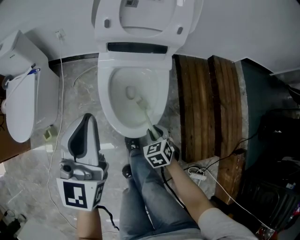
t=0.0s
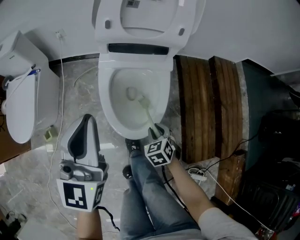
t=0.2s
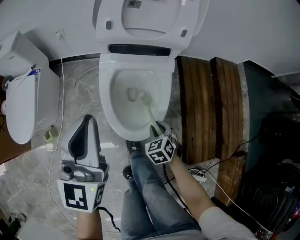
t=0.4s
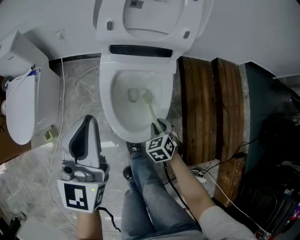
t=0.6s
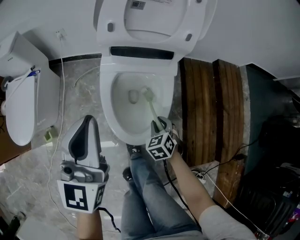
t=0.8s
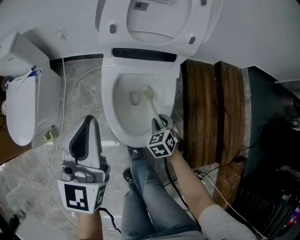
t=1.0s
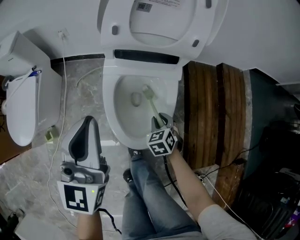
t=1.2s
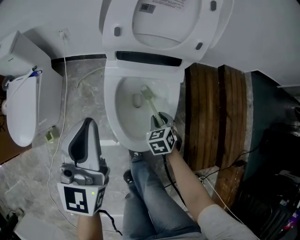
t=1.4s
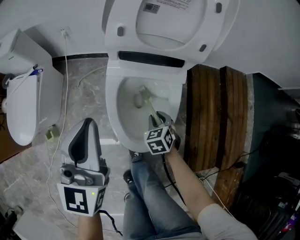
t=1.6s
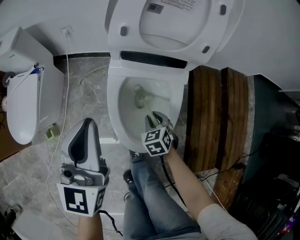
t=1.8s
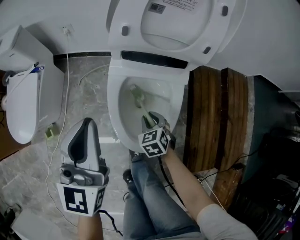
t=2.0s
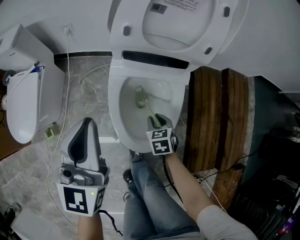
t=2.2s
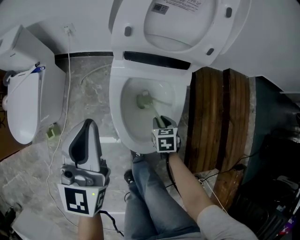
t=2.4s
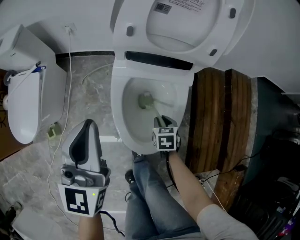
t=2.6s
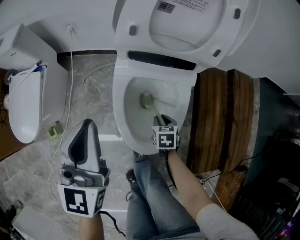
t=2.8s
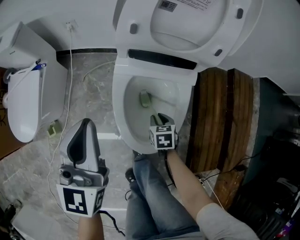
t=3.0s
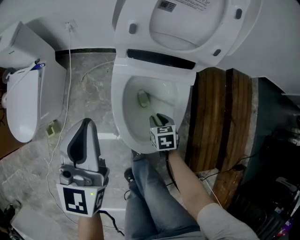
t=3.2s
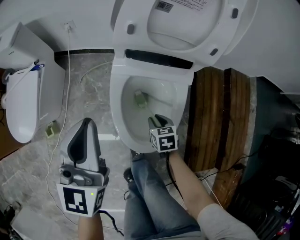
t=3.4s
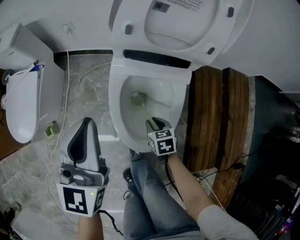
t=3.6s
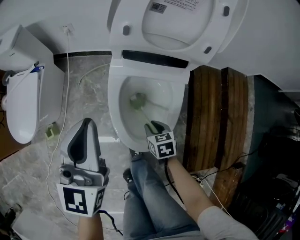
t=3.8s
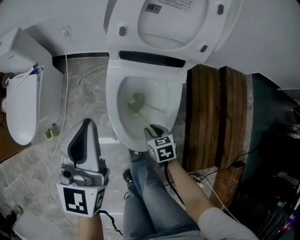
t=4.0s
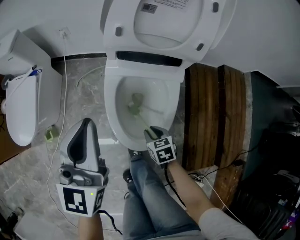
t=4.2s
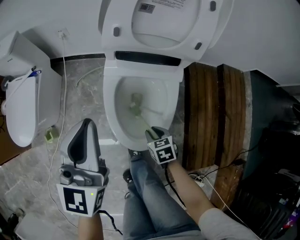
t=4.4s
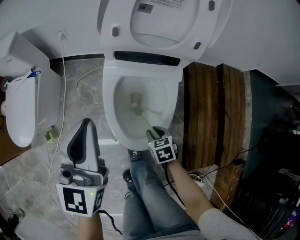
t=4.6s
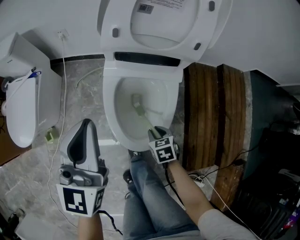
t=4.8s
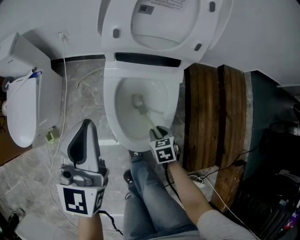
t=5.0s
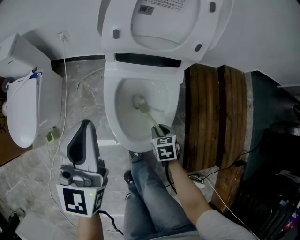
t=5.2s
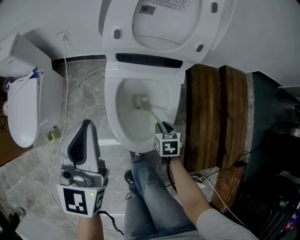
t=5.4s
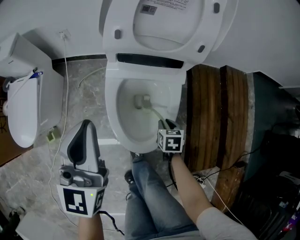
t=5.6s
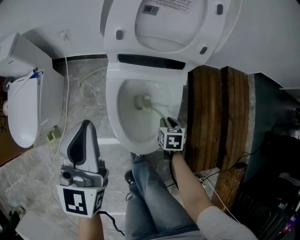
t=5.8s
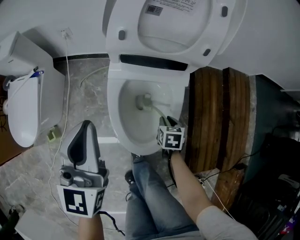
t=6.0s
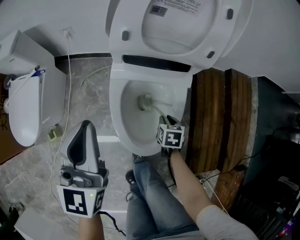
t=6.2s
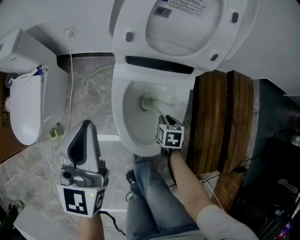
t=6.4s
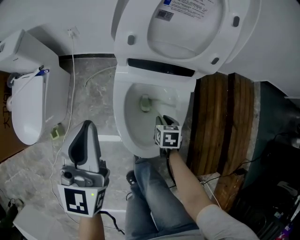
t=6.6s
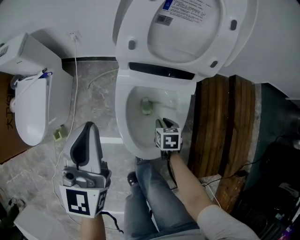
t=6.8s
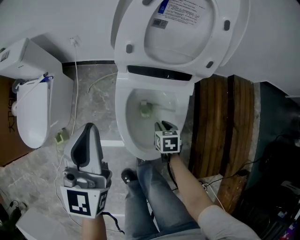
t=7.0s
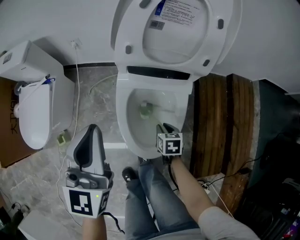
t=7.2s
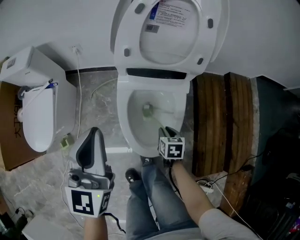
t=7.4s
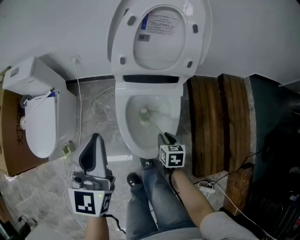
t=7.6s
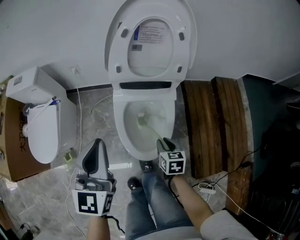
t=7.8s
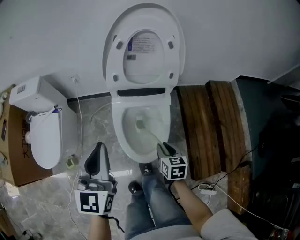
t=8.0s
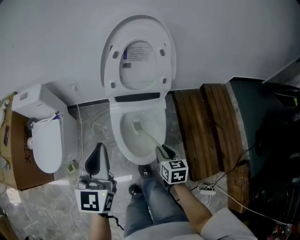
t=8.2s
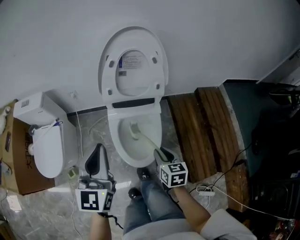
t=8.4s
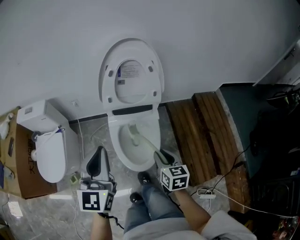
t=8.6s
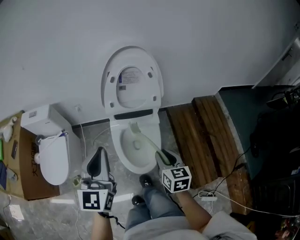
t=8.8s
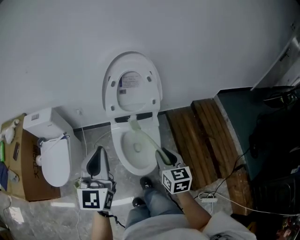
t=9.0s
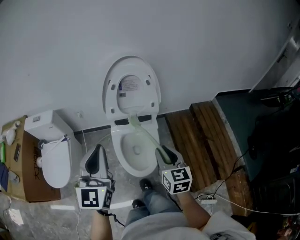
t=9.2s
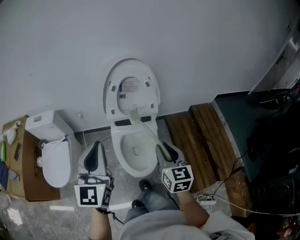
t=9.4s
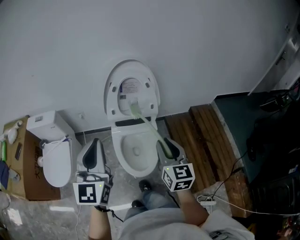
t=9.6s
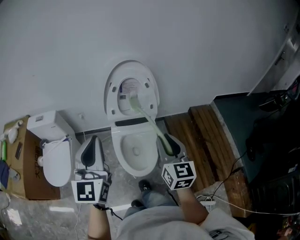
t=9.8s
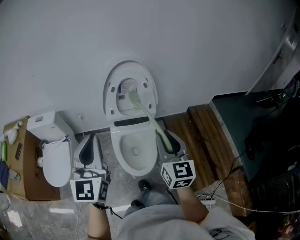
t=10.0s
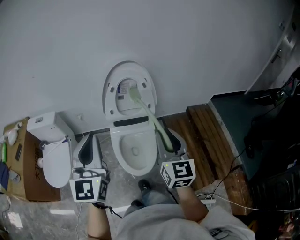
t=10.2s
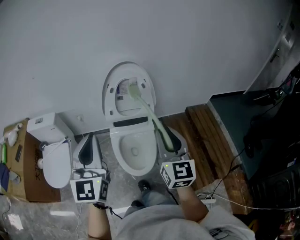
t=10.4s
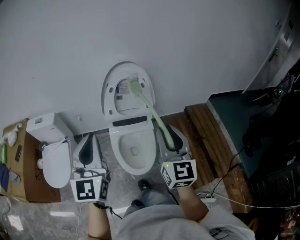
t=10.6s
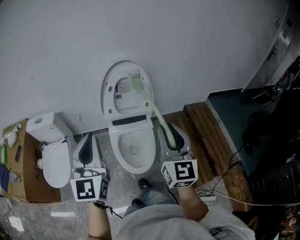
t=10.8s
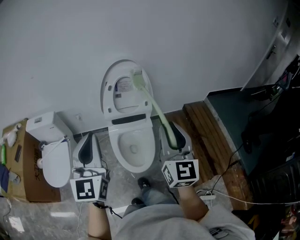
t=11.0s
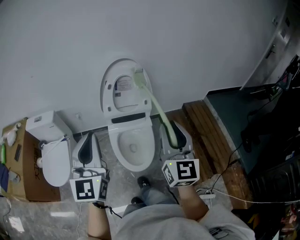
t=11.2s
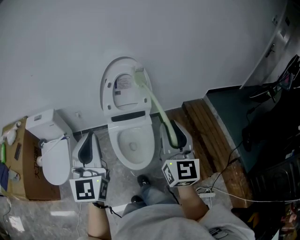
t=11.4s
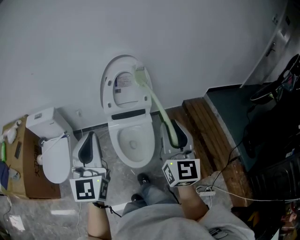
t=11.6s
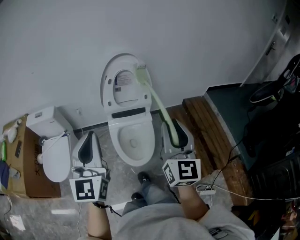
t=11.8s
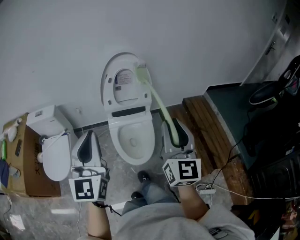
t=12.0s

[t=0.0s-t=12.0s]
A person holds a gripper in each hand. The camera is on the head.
t=0.0s to t=1.6s: The left gripper goes about 5 cm forward, while the right gripper is displaced forward by roughly 15 cm.
t=1.6s to t=3.0s: The right gripper rotates about 20 degrees.
t=3.0s to t=4.4s: The left gripper shifts by roughly 5 cm. Meanwhile the right gripper shifts approximately 10 cm backward.
t=4.4s to t=6.0s: The right gripper goes approximately 10 cm forward and to the right, and turns by roughly 20 degrees.
t=6.0s to t=7.6s: The two grippers go roughly 10 cm upward.
t=7.6s to t=9.0s: The right gripper shifts about 35 cm upward, and rotates roughly 30 degrees; the left gripper goes roughly 20 cm upward.
t=9.0s to t=10.4s: The left gripper goes roughly 10 cm upward; the right gripper is displaced upward by approximately 20 cm, and swivels some 30 degrees.
t=10.4s to t=12.0s: The two grippers go roughly 5 cm backward.

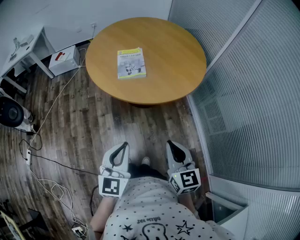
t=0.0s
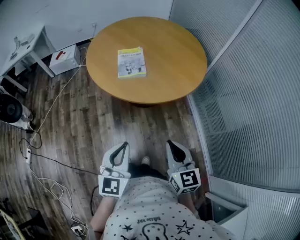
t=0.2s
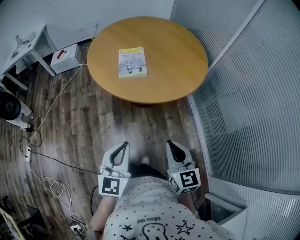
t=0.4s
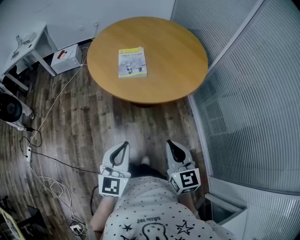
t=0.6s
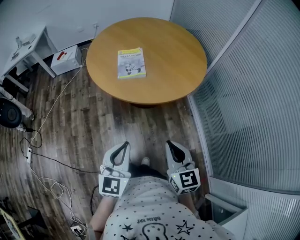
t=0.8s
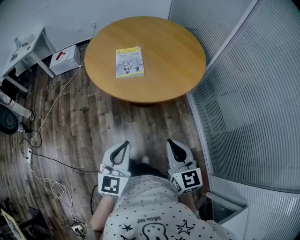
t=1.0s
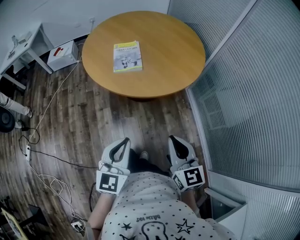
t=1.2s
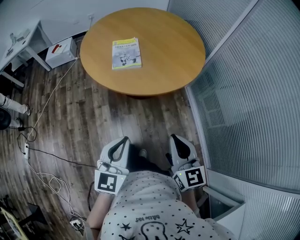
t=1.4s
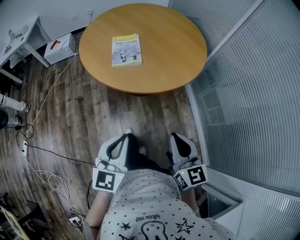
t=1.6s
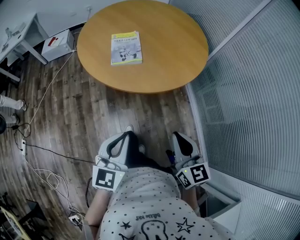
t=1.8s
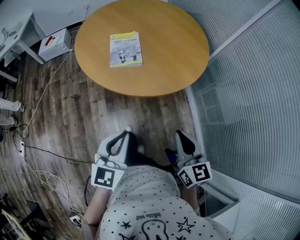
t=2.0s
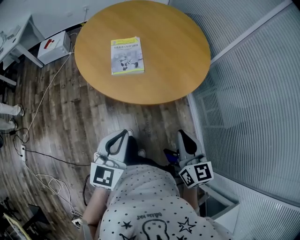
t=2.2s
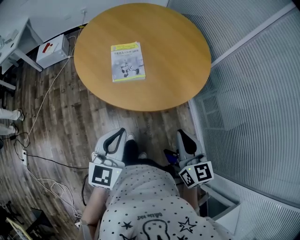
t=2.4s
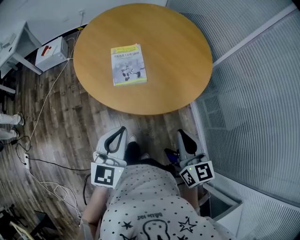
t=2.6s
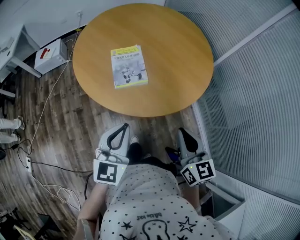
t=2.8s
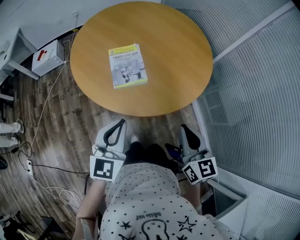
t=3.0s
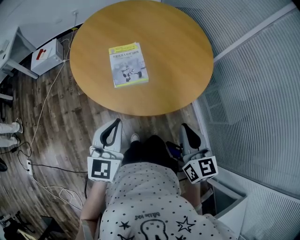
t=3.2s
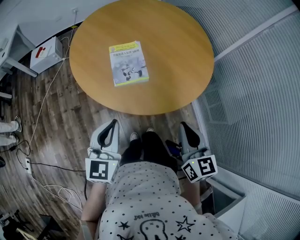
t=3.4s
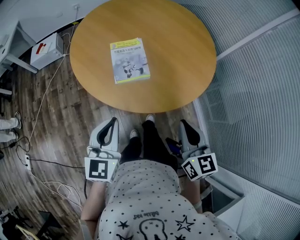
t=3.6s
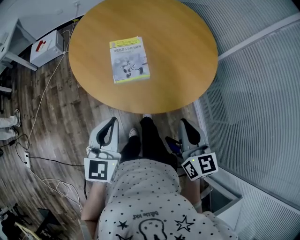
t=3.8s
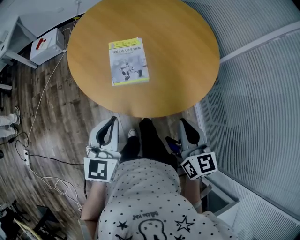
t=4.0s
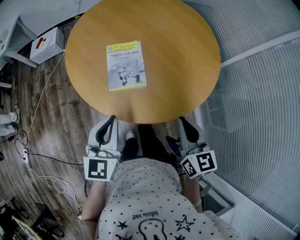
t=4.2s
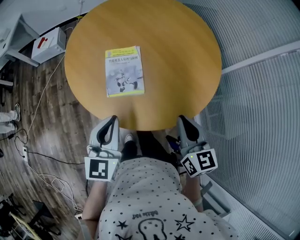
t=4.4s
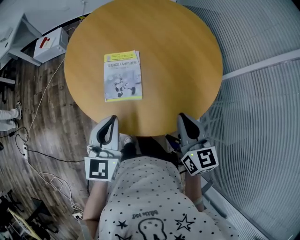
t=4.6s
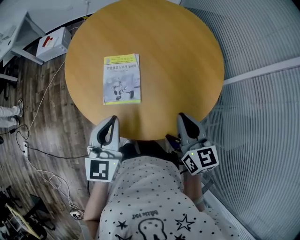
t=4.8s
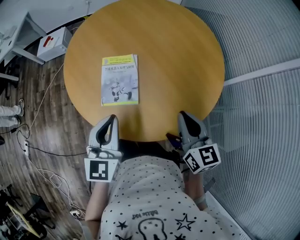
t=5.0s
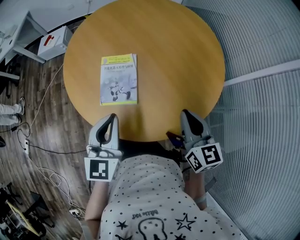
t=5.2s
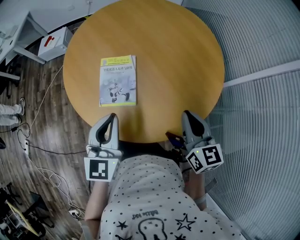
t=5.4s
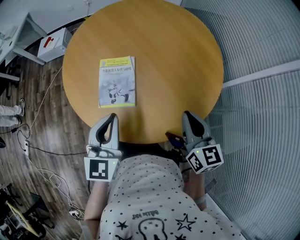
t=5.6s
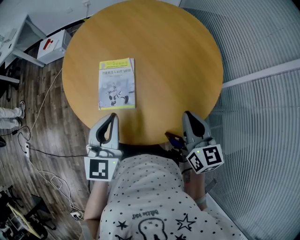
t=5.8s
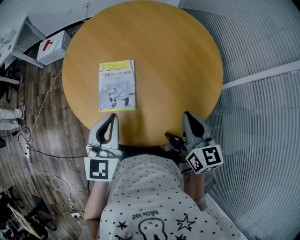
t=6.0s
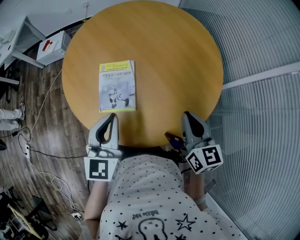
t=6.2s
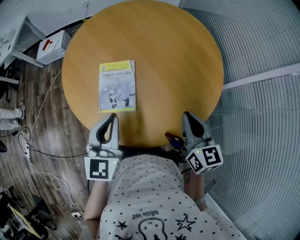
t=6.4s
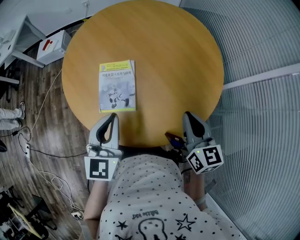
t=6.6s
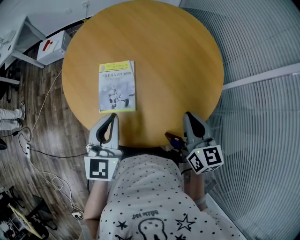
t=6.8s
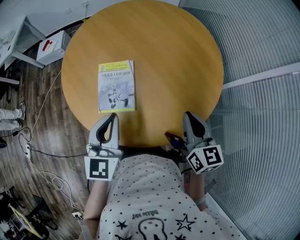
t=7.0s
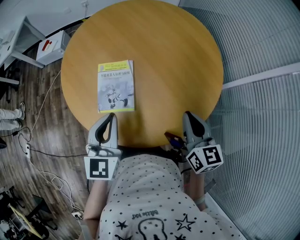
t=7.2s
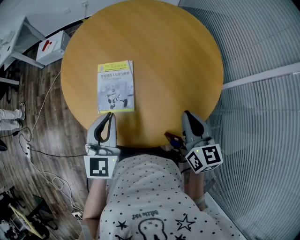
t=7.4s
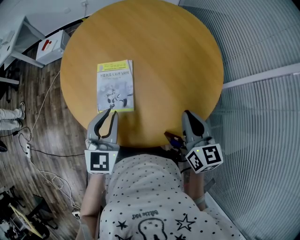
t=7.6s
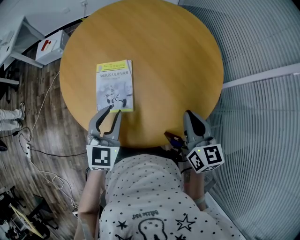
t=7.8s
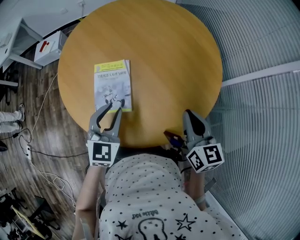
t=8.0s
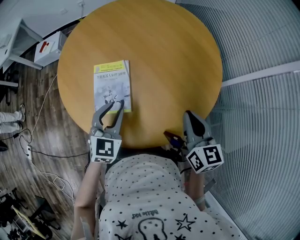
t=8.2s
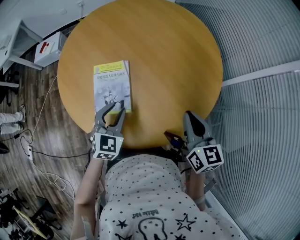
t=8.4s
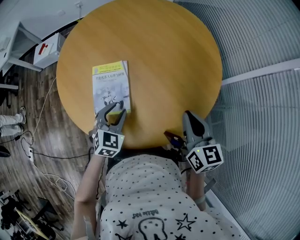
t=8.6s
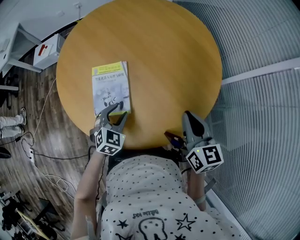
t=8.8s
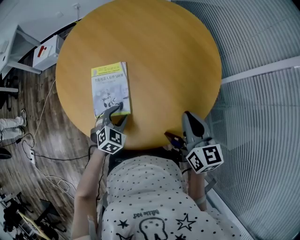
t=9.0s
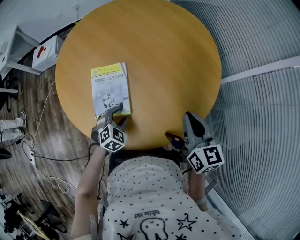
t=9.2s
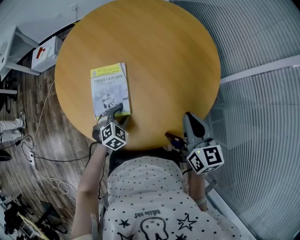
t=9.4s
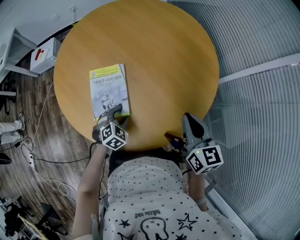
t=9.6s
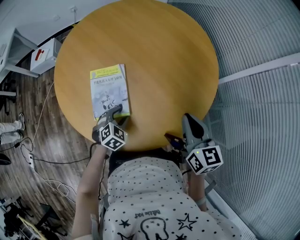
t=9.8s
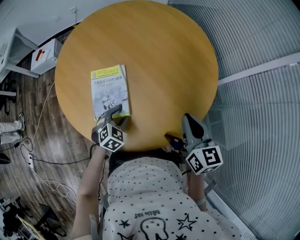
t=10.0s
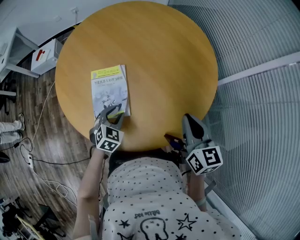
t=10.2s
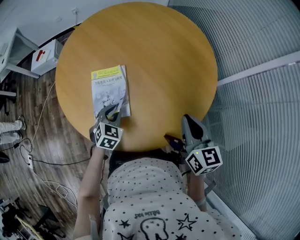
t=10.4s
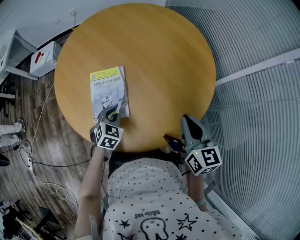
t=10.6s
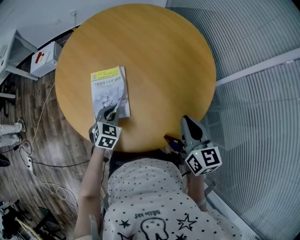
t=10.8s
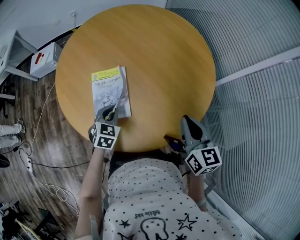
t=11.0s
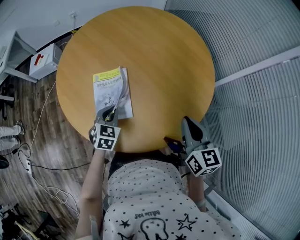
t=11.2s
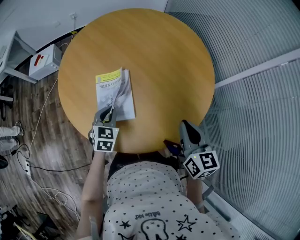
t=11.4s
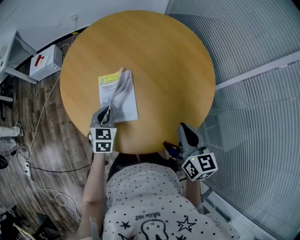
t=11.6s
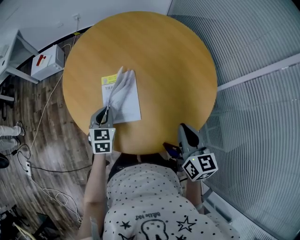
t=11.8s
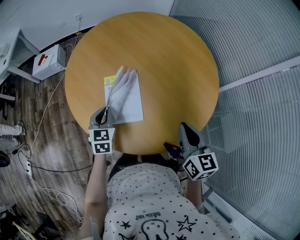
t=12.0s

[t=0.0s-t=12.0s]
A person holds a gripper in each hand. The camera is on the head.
t=0.0s to t=1.6s: There are only small adjustments of the grippers.
t=1.6s to t=3.0s: The left gripper travels forward and to the left by roughly 25 cm. Meanwhile the right gripper heads forward, covering roughly 20 cm.
t=3.0s to t=4.4s: Both grippers travel together forward, about 15 cm.
t=4.4s to t=6.0s: Both grippers move forward and to the right, about 10 cm.
t=6.0s to t=7.6s: There are only small adjustments of the grippers.
t=7.6s to t=9.0s: The left gripper is displaced downward by roughly 20 cm, tilts its fingers some 30 degrees downward, and opens up.
t=9.0s to t=10.4s: The left gripper closes its fingers.
t=10.4s to t=12.0s: The left gripper shifts about 15 cm to the left and upward, and turns by roughly 30 degrees; the right gripper heads to the left, covering some 10 cm.
